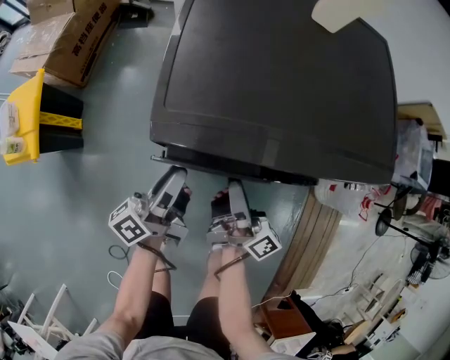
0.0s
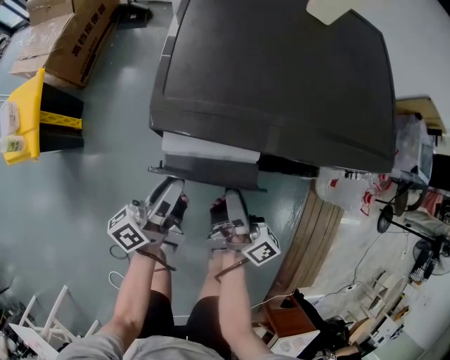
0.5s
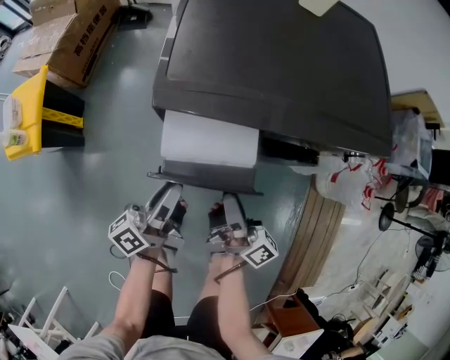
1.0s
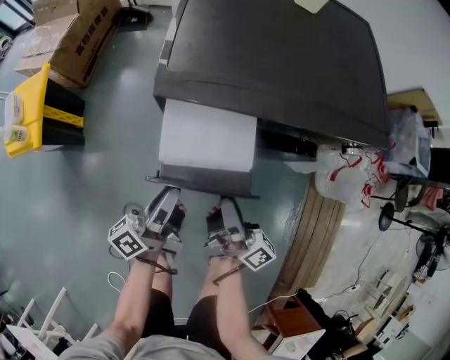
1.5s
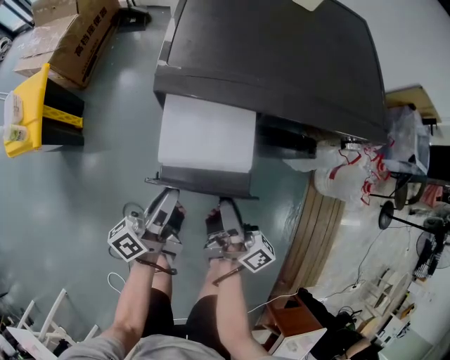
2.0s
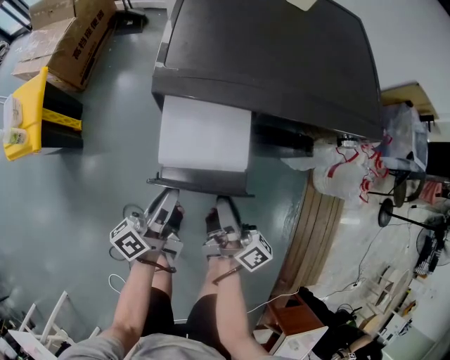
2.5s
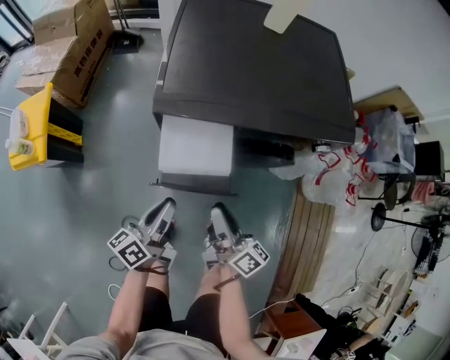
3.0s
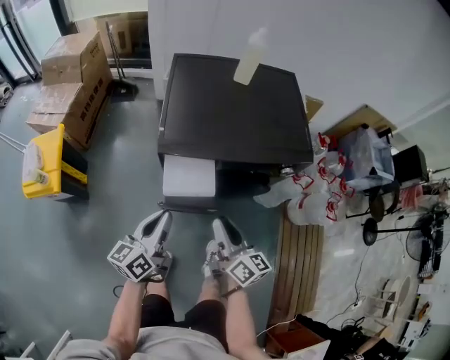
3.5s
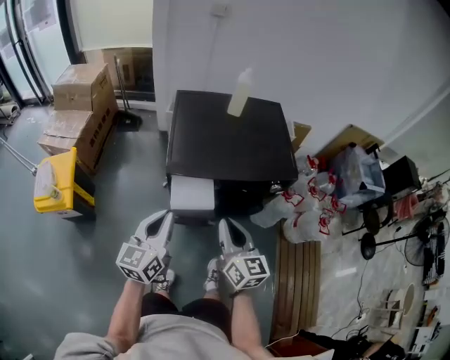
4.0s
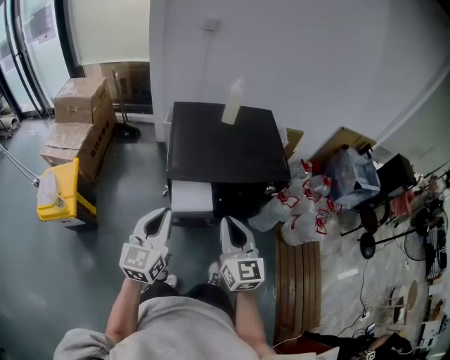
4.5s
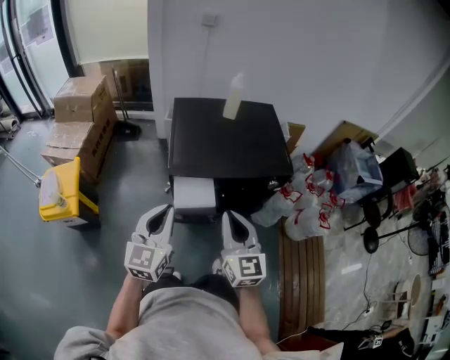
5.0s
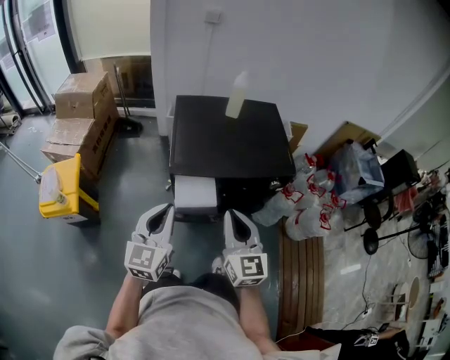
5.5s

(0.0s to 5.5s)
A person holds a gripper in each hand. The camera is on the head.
0.0s - 2.0s: The two grippers go approximately 15 cm backward.
2.0s - 3.5s: Both grippers travel together upward, about 15 cm. The left gripper turns by approximately 30 degrees. The right gripper rotates roughly 40 degrees.
3.5s - 5.5s: Both grippers travel together upward, roughly 15 cm. The left gripper rotates approximately 40 degrees, while the right gripper twists some 40 degrees counterclockwise, seen from behind.

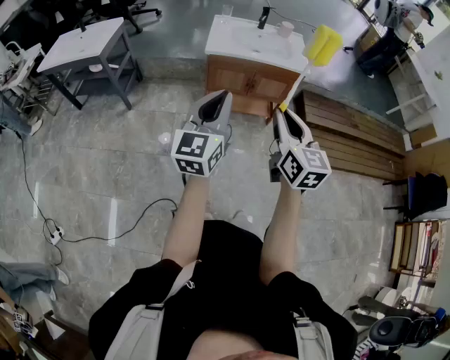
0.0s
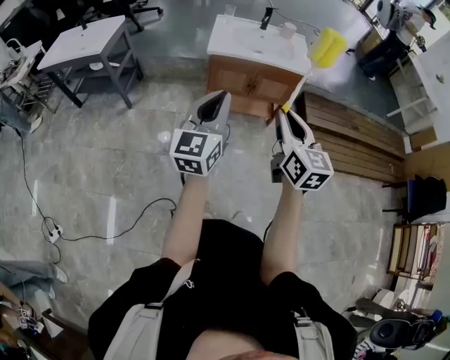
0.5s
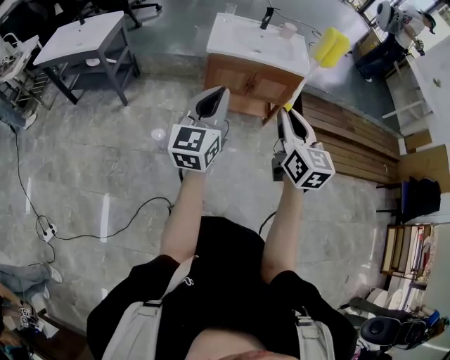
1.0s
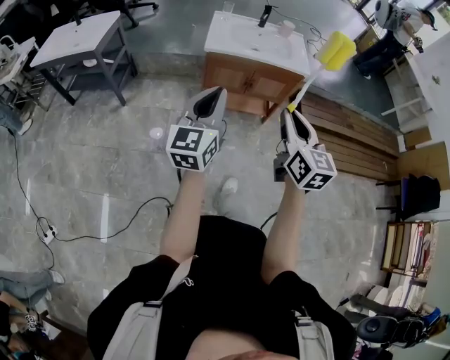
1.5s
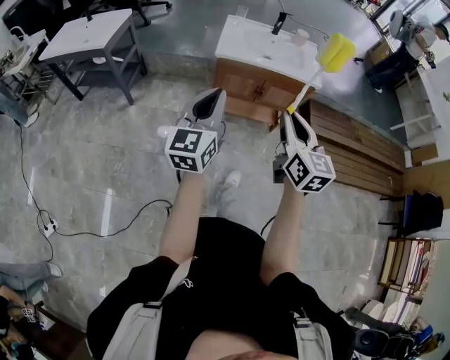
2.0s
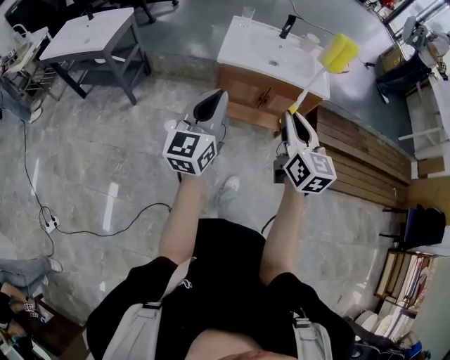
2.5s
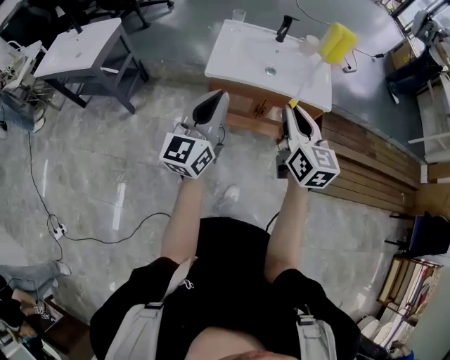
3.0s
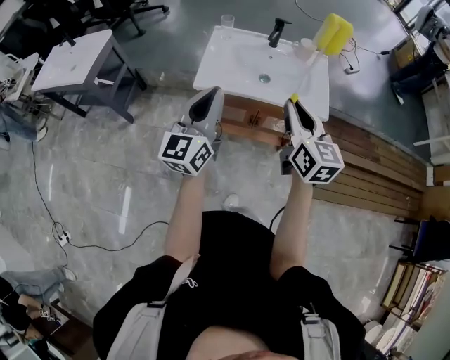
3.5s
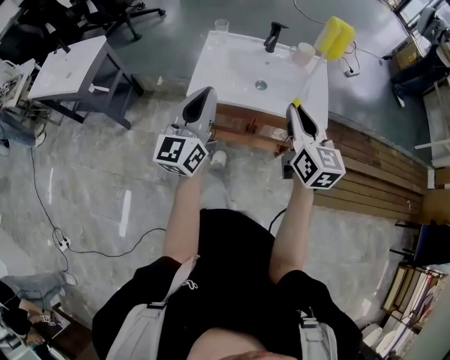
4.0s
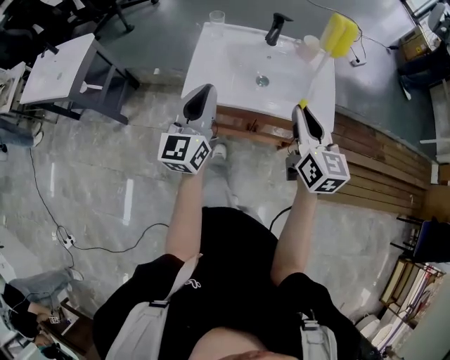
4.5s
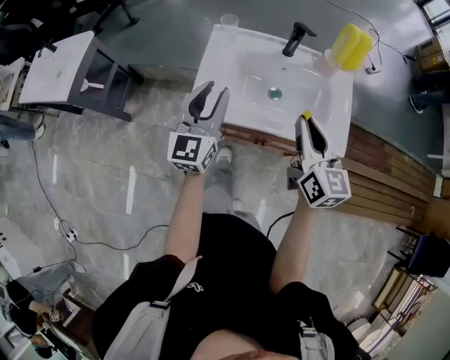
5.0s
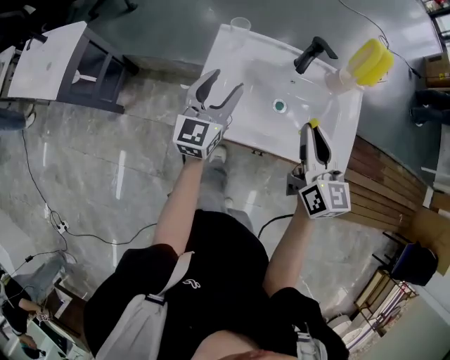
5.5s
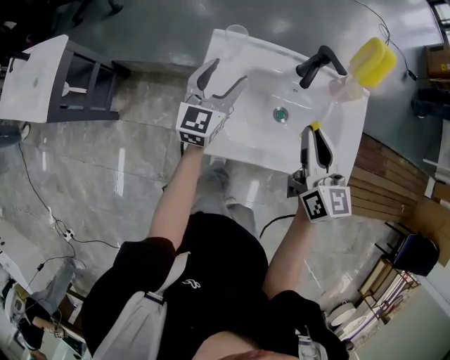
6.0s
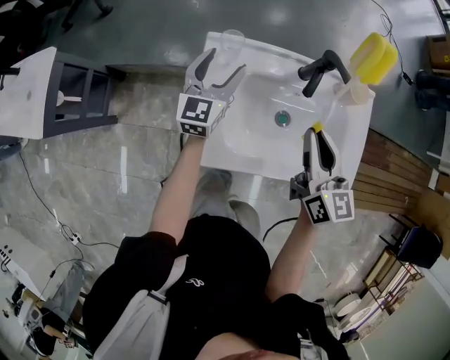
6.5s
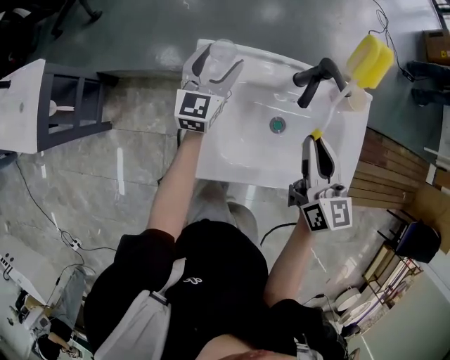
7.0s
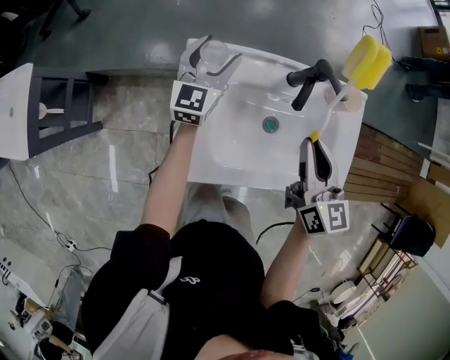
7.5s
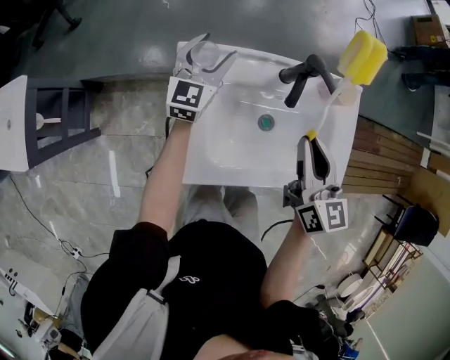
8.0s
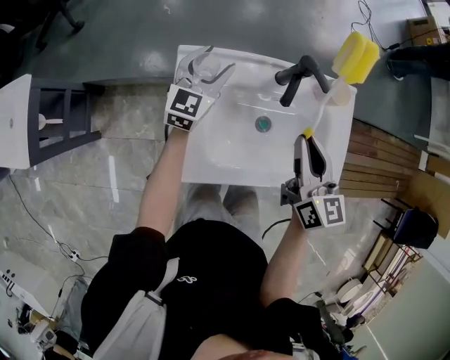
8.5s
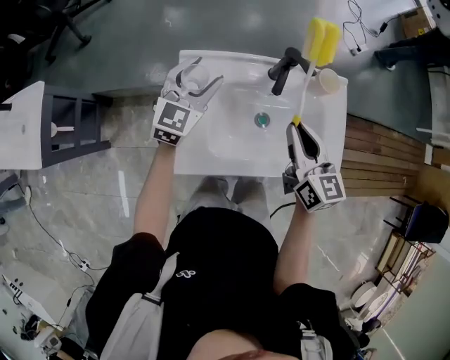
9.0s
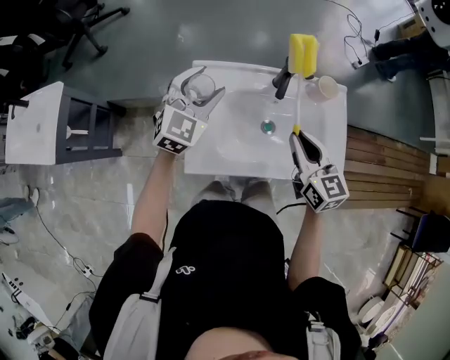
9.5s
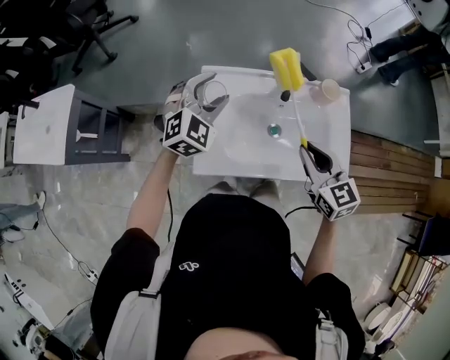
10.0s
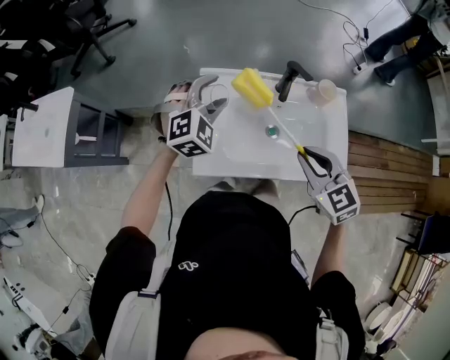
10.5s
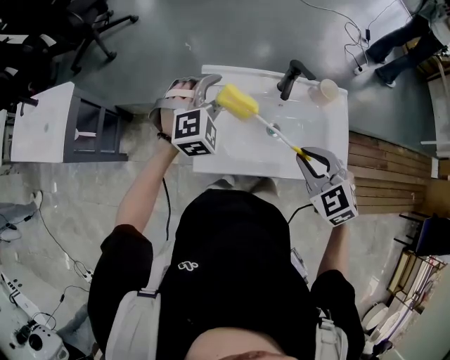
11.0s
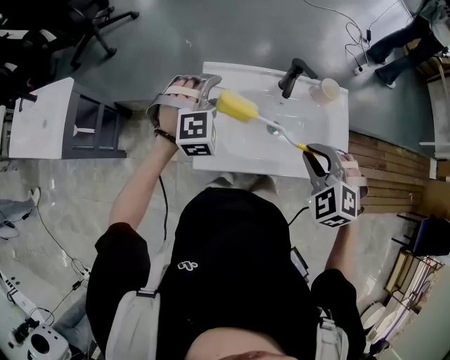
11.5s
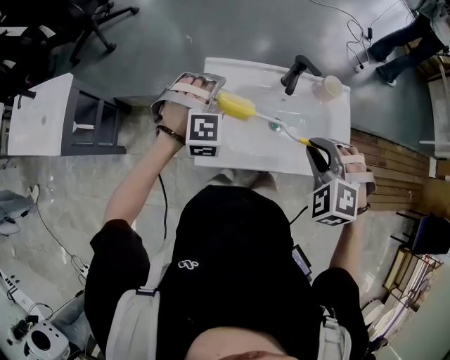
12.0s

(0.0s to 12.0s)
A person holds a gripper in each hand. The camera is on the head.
0.0s - 2.0s: The left gripper travels forward and to the left by about 10 cm, while the right gripper shifts approximately 5 cm forward.
2.0s - 4.0s: The two grippers go approximately 35 cm forward.
4.0s - 6.0s: The left gripper shifts approximately 40 cm forward and downward, swivels approximately 20 degrees, and opens, while the right gripper moves forward, approximately 25 cm.
6.0s - 8.0s: The left gripper is displaced forward by approximately 15 cm, while the right gripper moves forward, roughly 5 cm.
8.0s - 10.0s: The left gripper goes roughly 20 cm backward and upward, and swivels roughly 40 degrees, while the right gripper travels backward by roughly 10 cm, and rotates roughly 20 degrees.
10.0s - 12.0s: The right gripper twists some 60 degrees counterclockwise, seen from behind. The left gripper turns by some 40 degrees.

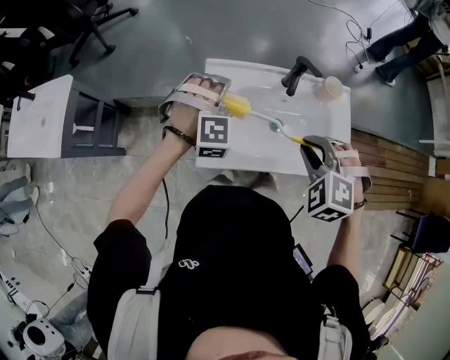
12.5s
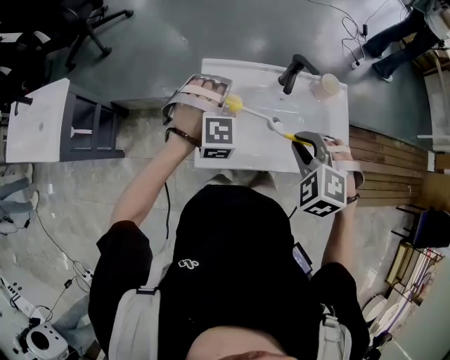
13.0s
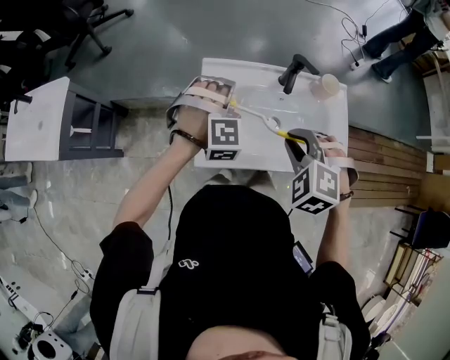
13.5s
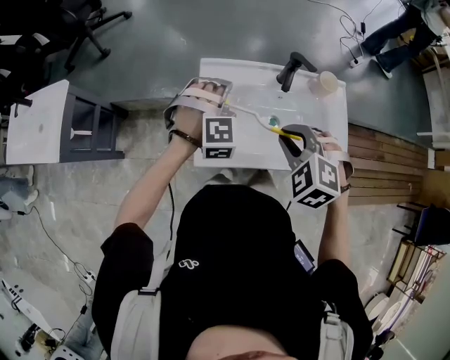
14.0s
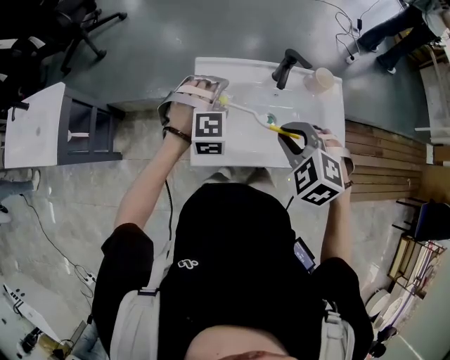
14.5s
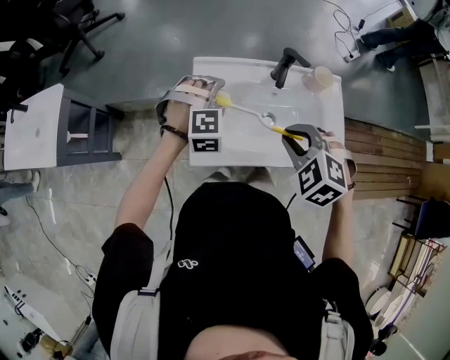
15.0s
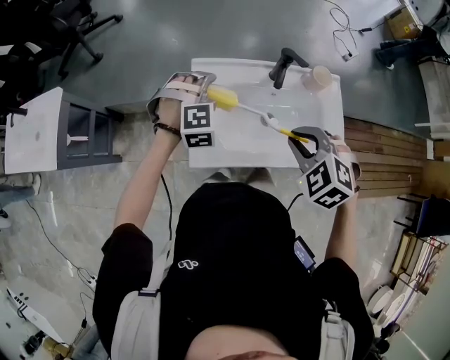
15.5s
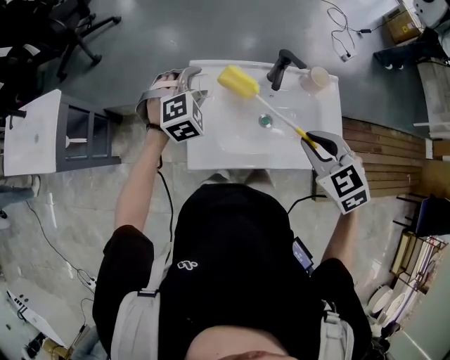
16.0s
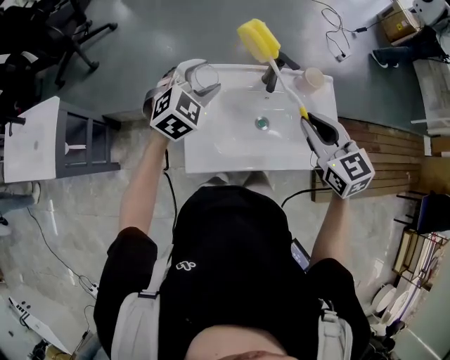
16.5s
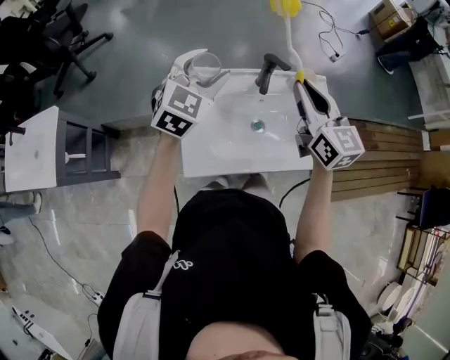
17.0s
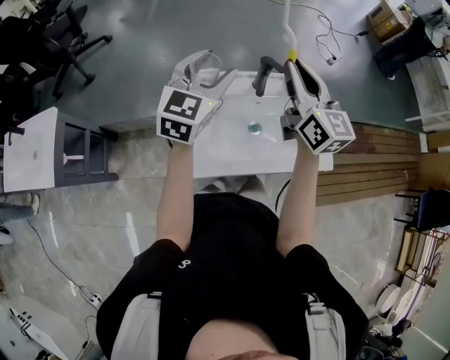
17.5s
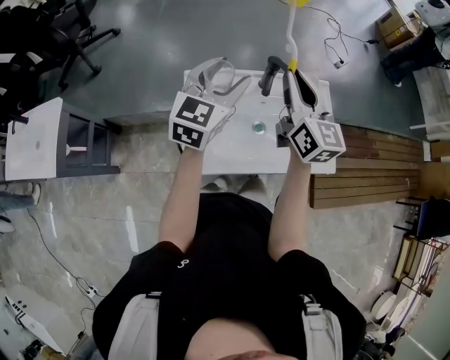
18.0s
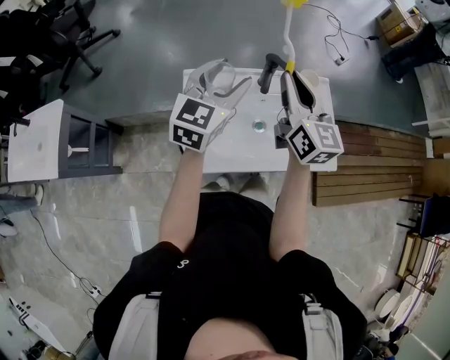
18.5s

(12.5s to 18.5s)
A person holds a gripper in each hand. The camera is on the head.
12.5s - 14.5s: The grippers make only small movements.
14.5s - 16.5s: The right gripper is displaced to the right and upward by approximately 10 cm, and tilts its fingers about 30 degrees upward. The left gripper travels upward by about 5 cm, and turns by approximately 40 degrees.
16.5s - 18.5s: The left gripper travels upward and to the right by about 10 cm, and swivels about 40 degrees, while the right gripper heads forward and upward, covering some 10 cm, and rotates roughly 30 degrees.

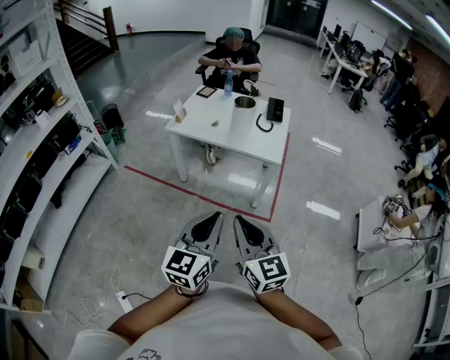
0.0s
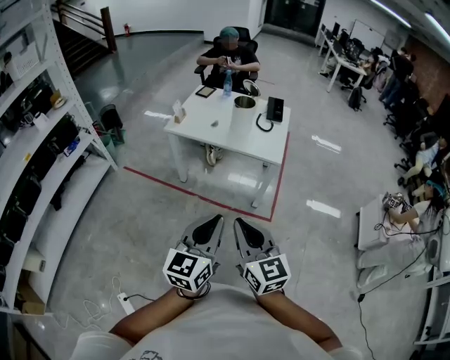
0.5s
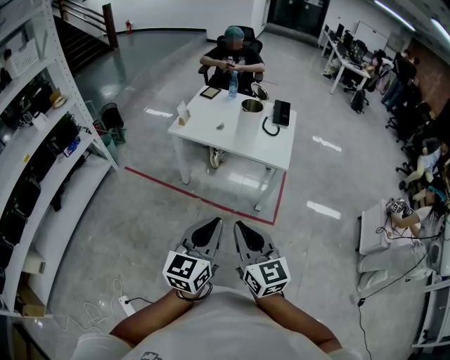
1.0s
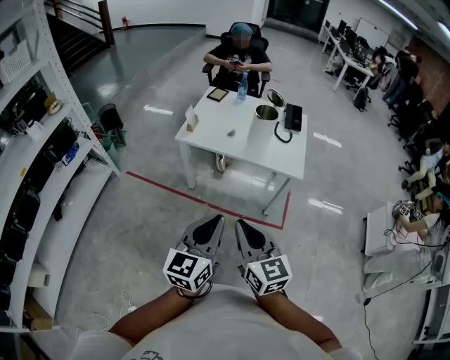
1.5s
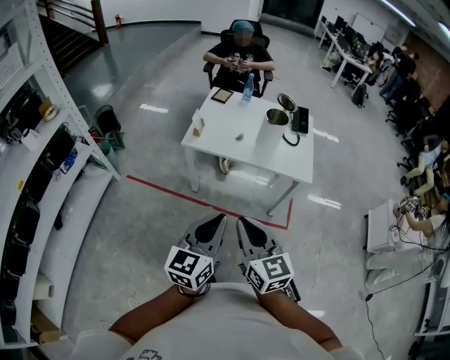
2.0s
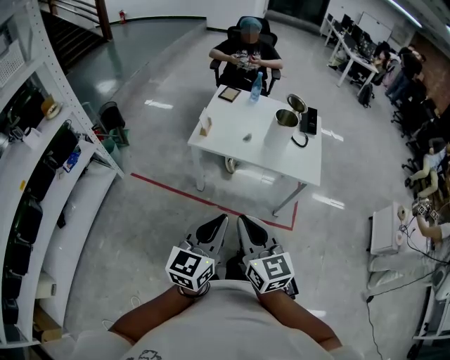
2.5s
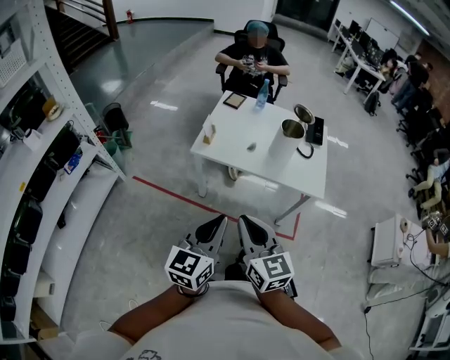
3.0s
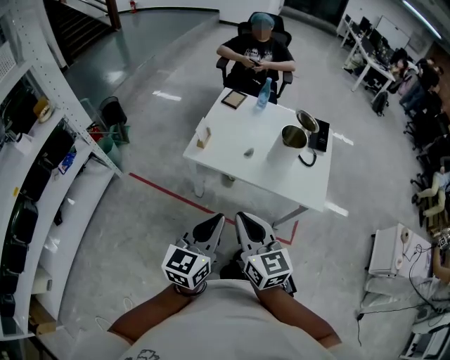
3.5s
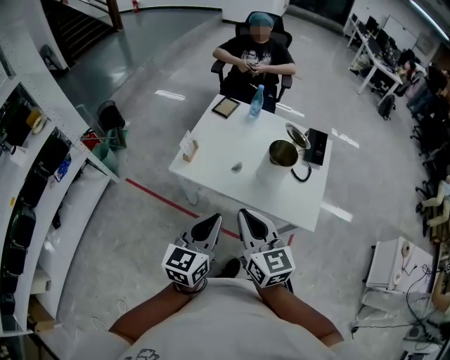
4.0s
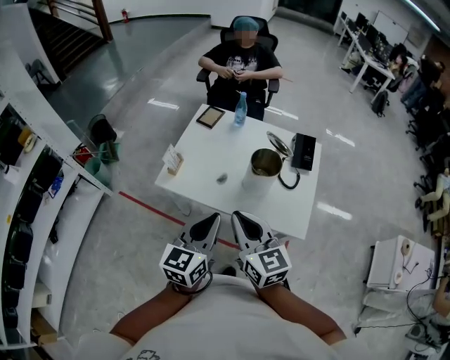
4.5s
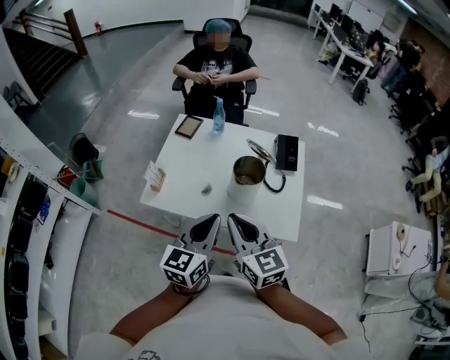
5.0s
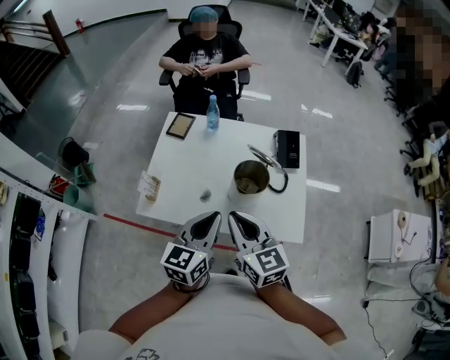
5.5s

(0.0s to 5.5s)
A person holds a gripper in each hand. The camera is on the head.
0.0s - 2.0s: The two grippers go about 25 cm to the left and forward.
2.0s - 3.5s: Both grippers move forward, approximately 15 cm.
3.5s - 5.5s: Both grippers move forward and to the right, about 30 cm.
